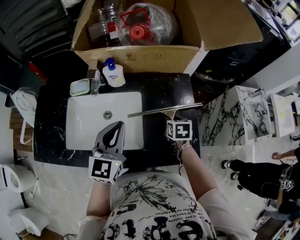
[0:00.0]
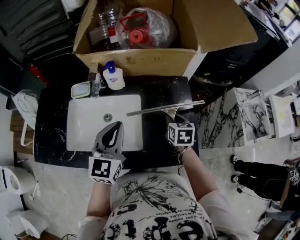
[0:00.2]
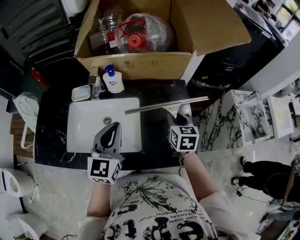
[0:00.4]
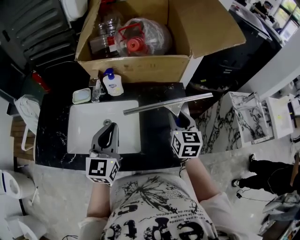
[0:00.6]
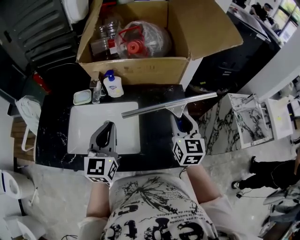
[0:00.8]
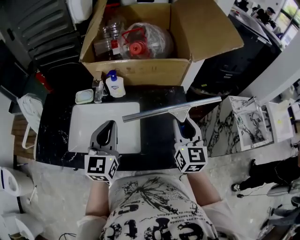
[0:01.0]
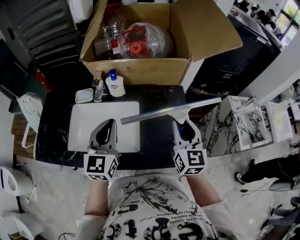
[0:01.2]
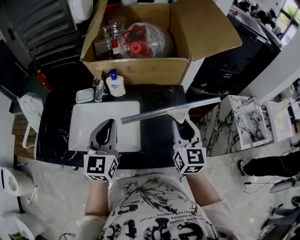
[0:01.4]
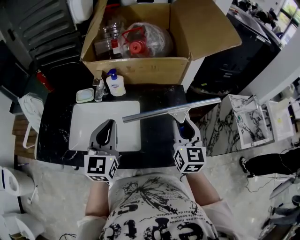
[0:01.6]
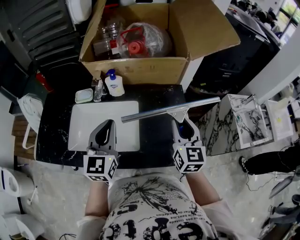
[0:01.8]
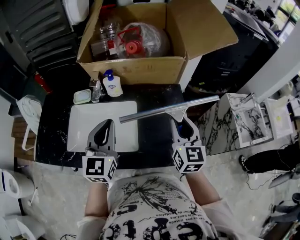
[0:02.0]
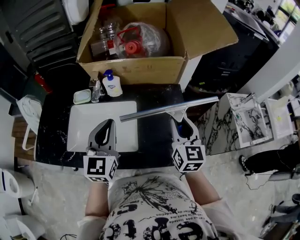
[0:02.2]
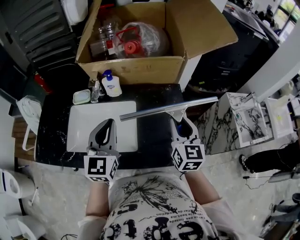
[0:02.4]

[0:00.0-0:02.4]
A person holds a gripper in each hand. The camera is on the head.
0:00.0 to 0:01.2: The left gripper changes place by approximately 5 cm; the right gripper goes about 25 cm upward, and tilts its fingers some 50 degrees upward.
0:01.2 to 0:02.4: There are only small adjustments of the grippers.

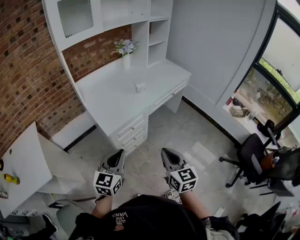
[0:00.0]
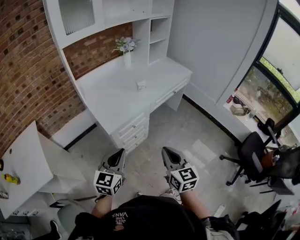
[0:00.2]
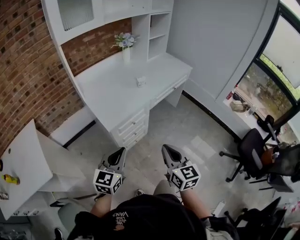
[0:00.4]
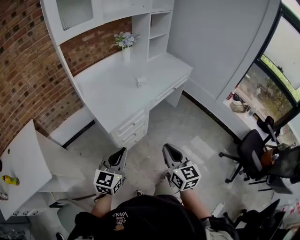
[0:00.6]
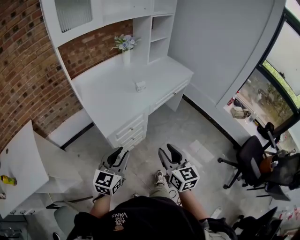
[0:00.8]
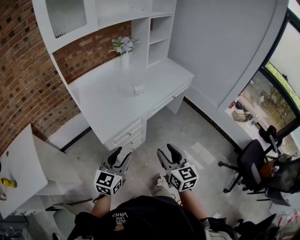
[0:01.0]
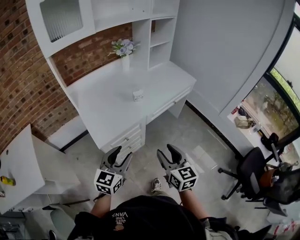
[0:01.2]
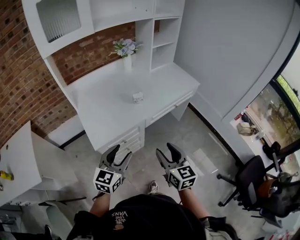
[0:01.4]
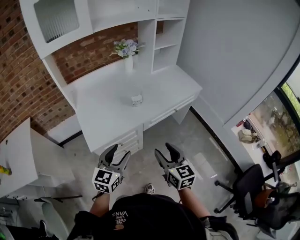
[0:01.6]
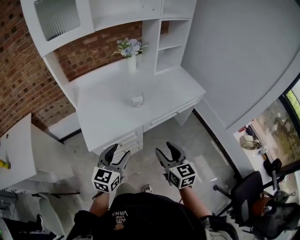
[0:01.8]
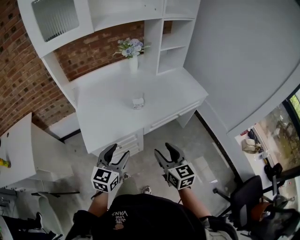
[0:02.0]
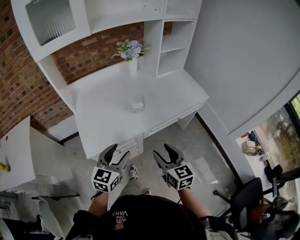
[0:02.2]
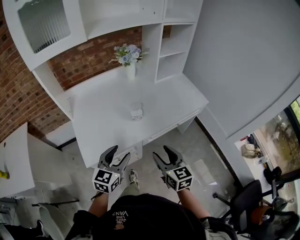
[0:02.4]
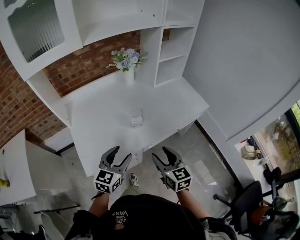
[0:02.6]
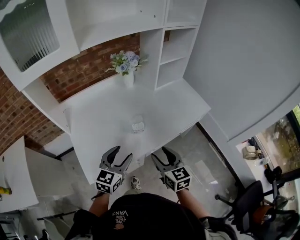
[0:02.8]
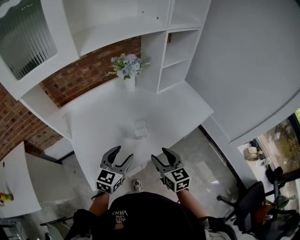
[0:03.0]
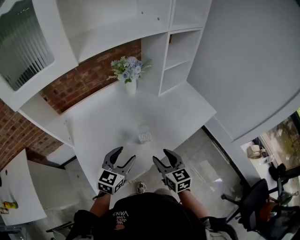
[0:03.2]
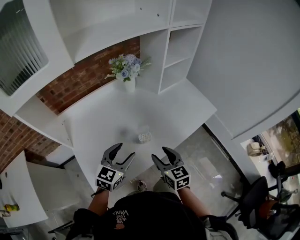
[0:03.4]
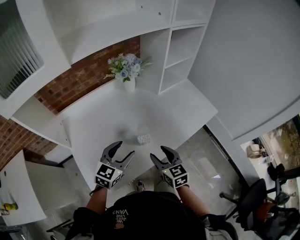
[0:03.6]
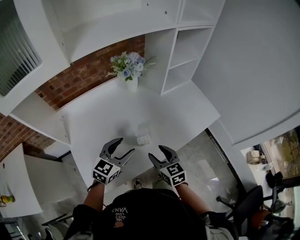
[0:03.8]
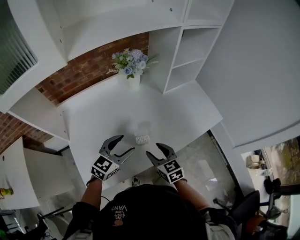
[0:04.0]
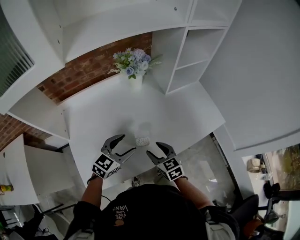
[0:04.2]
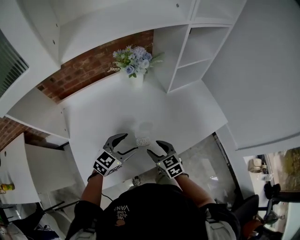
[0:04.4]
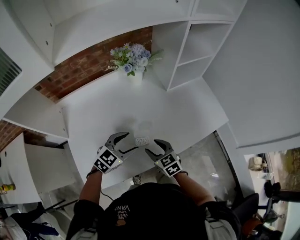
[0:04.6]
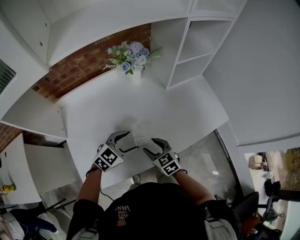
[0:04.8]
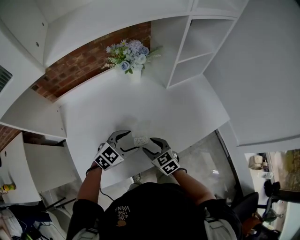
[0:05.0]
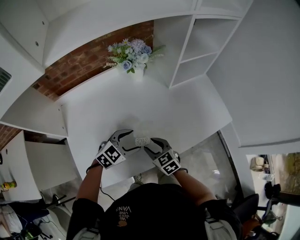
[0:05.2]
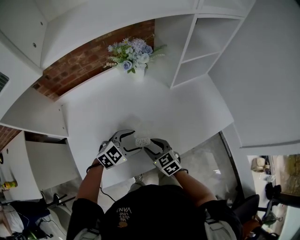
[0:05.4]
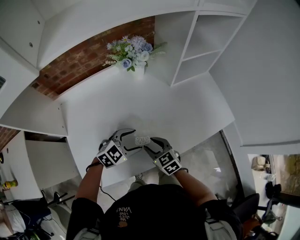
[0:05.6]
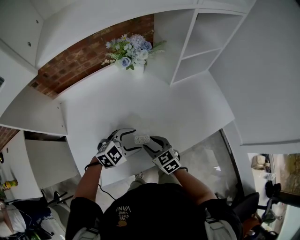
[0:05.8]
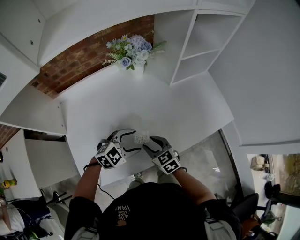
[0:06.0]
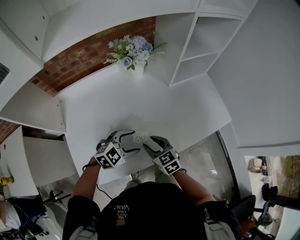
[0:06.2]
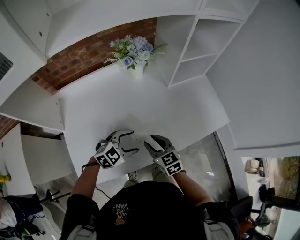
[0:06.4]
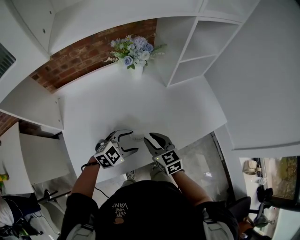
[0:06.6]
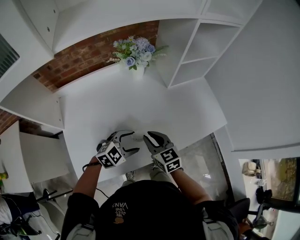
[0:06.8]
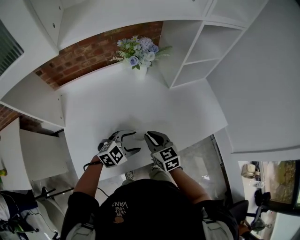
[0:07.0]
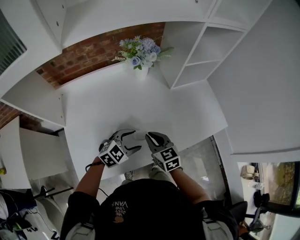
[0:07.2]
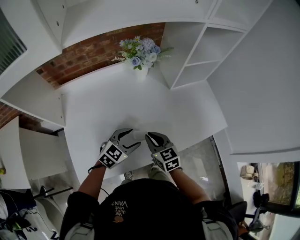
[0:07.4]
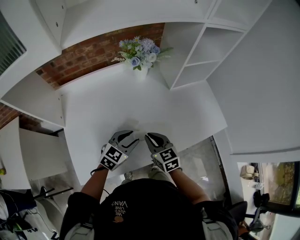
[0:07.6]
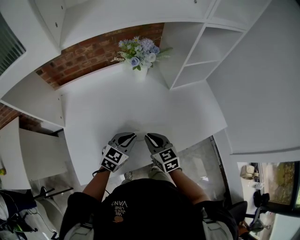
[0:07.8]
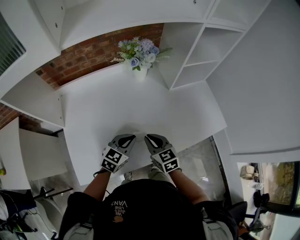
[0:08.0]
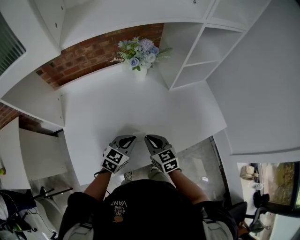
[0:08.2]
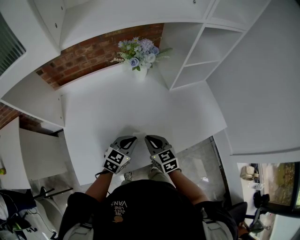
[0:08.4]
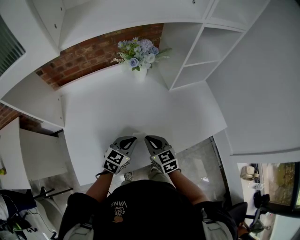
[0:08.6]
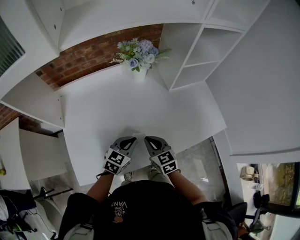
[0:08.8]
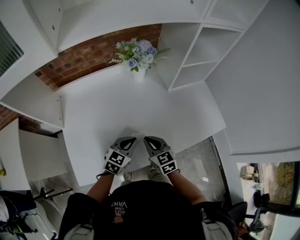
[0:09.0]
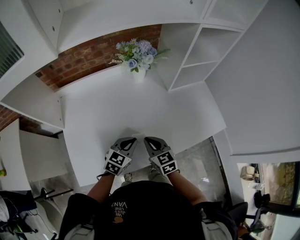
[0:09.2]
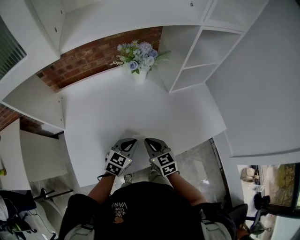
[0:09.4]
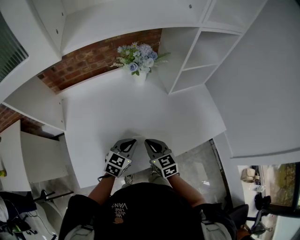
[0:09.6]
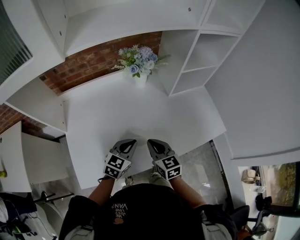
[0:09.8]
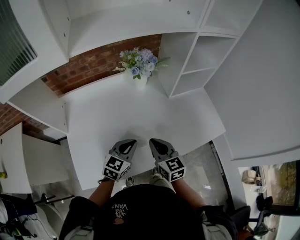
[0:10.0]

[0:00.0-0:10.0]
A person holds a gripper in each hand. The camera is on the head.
0:00.0 to 0:01.4: The left gripper is displaced forward and to the right by approximately 20 cm, and opens its fingers; the right gripper moves forward, roughly 20 cm, and opens up.
0:01.4 to 0:02.8: Both grippers move forward, roughly 25 cm.
0:02.8 to 0:04.2: The left gripper shifts about 15 cm forward, while the right gripper heads forward and downward, covering approximately 20 cm, and changes its angle by approximately 20 degrees.
0:04.2 to 0:05.8: The grippers both shift downward by roughly 5 cm. The left gripper swivels about 30 degrees.
0:05.8 to 0:07.2: The right gripper goes about 5 cm upward, and closes its fingers.
0:07.2 to 0:08.6: The left gripper rotates roughly 30 degrees, and closes.
0:08.6 to 0:10.0: Both grippers travel together upward, approximately 5 cm.

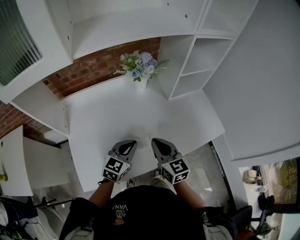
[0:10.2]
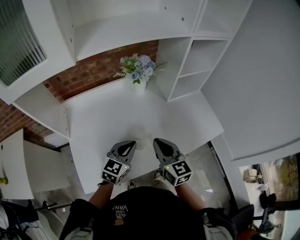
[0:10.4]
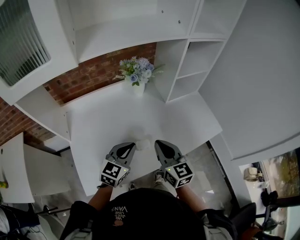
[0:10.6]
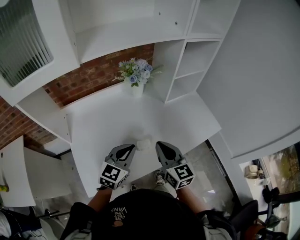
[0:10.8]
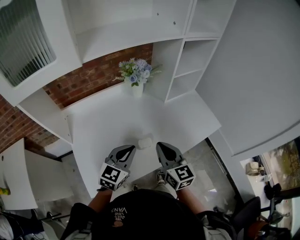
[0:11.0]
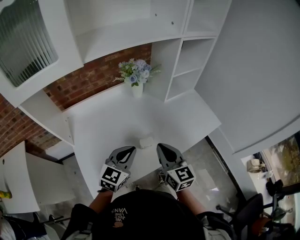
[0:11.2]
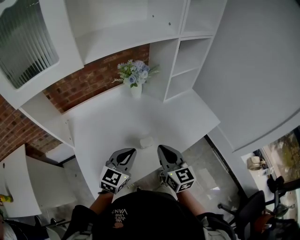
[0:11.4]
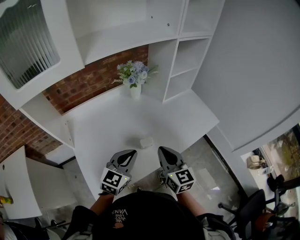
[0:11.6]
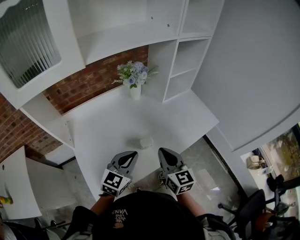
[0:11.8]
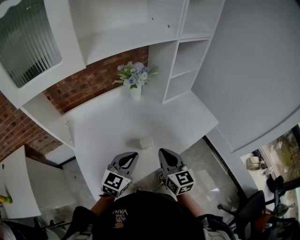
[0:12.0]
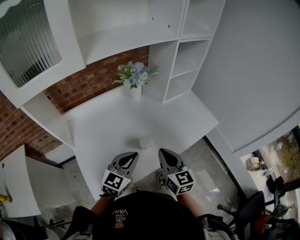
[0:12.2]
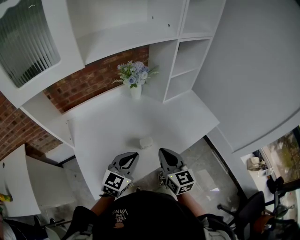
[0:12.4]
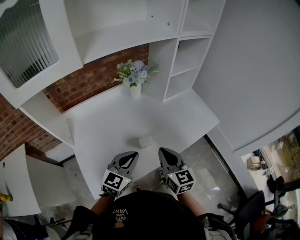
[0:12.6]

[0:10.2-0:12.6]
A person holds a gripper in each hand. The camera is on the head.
0:10.2 to 0:11.4: The right gripper moves backward, some 10 cm. Meanwhile the left gripper travels backward and upward by approximately 10 cm.
0:11.4 to 0:12.6: The grippers stay close to where they were, moving slightly.

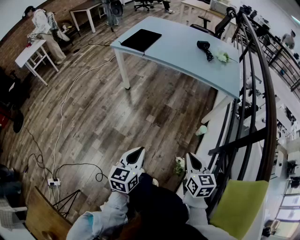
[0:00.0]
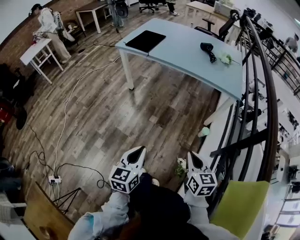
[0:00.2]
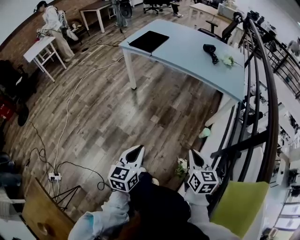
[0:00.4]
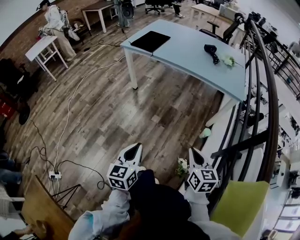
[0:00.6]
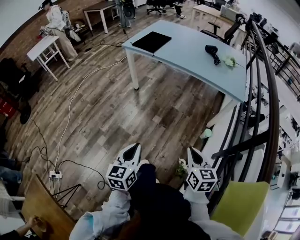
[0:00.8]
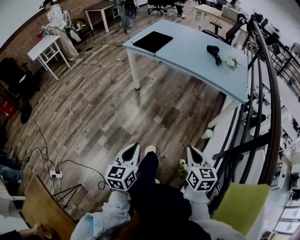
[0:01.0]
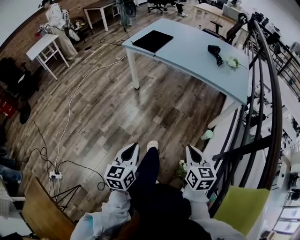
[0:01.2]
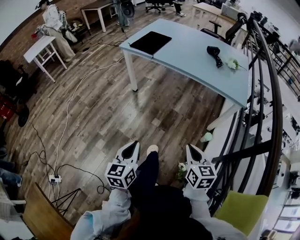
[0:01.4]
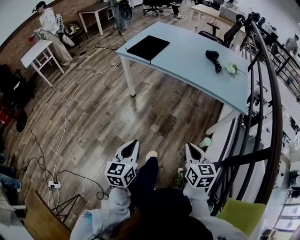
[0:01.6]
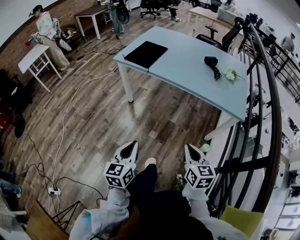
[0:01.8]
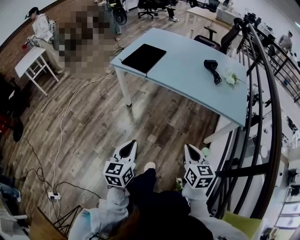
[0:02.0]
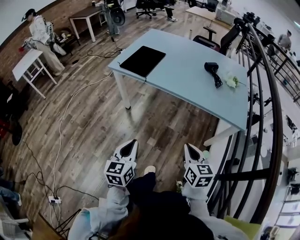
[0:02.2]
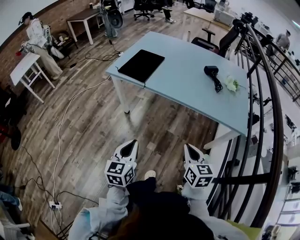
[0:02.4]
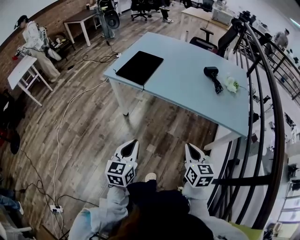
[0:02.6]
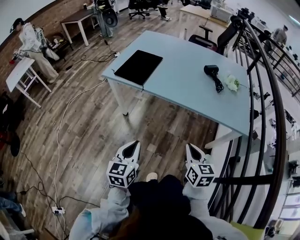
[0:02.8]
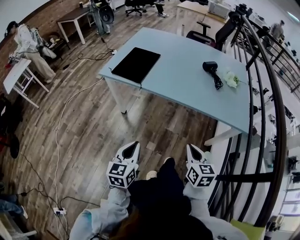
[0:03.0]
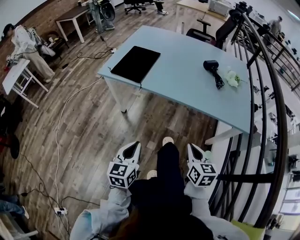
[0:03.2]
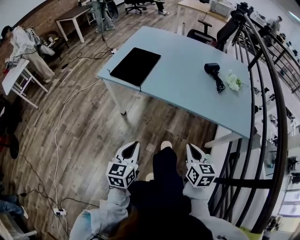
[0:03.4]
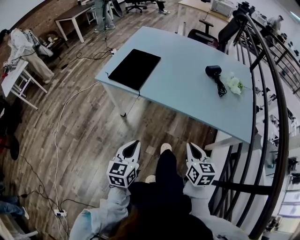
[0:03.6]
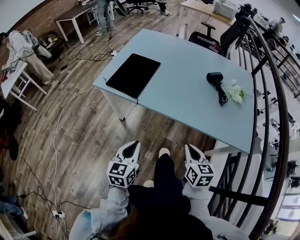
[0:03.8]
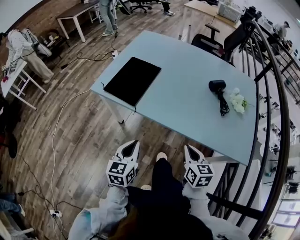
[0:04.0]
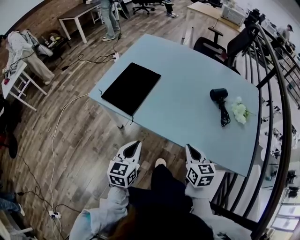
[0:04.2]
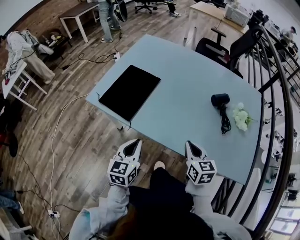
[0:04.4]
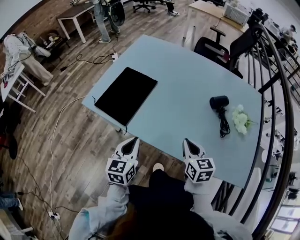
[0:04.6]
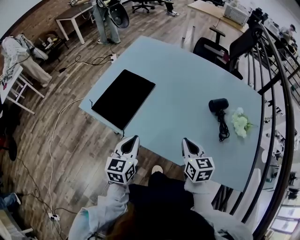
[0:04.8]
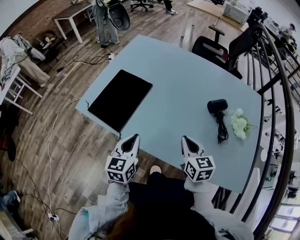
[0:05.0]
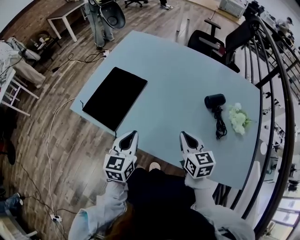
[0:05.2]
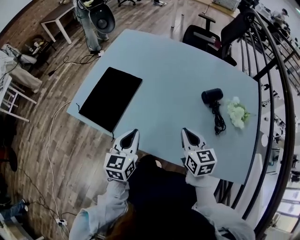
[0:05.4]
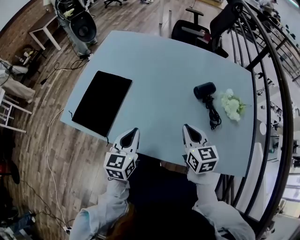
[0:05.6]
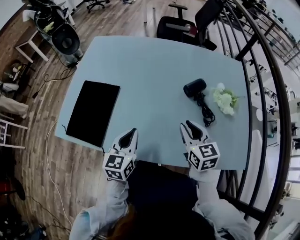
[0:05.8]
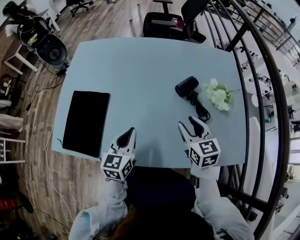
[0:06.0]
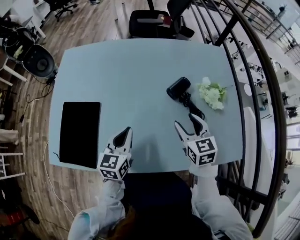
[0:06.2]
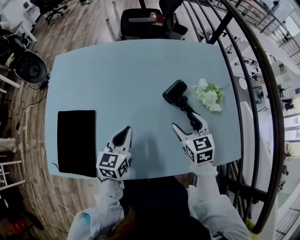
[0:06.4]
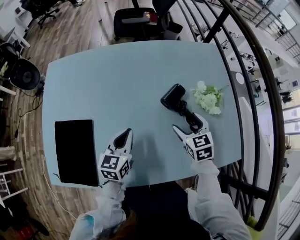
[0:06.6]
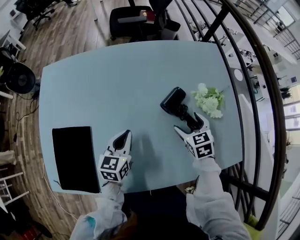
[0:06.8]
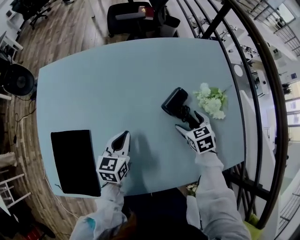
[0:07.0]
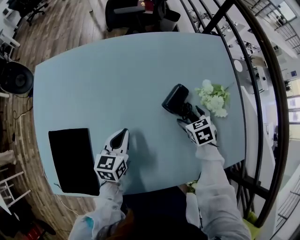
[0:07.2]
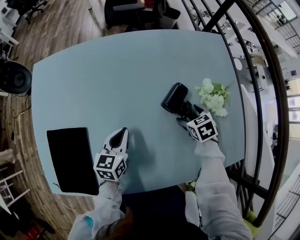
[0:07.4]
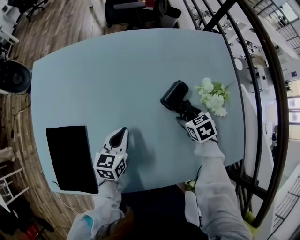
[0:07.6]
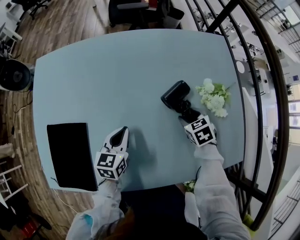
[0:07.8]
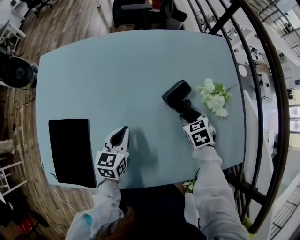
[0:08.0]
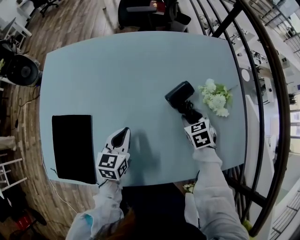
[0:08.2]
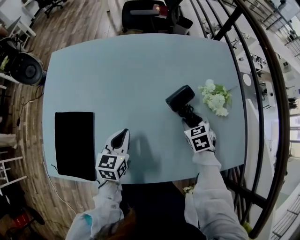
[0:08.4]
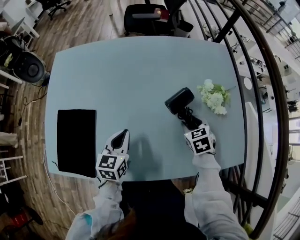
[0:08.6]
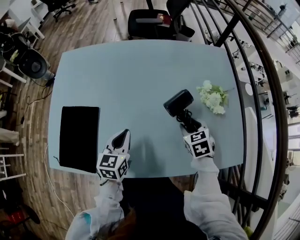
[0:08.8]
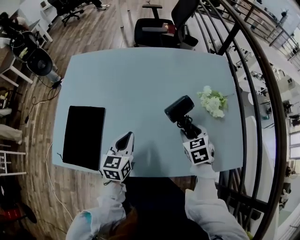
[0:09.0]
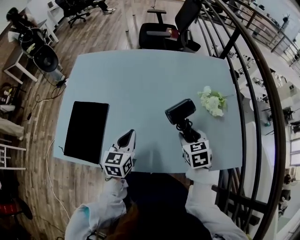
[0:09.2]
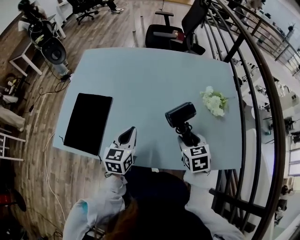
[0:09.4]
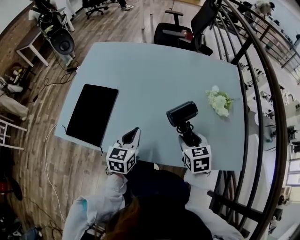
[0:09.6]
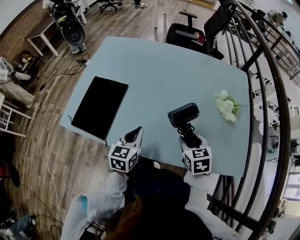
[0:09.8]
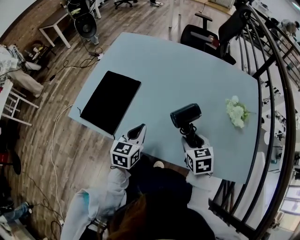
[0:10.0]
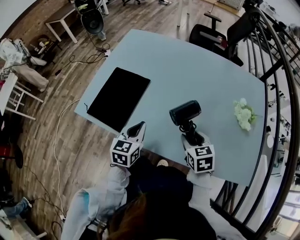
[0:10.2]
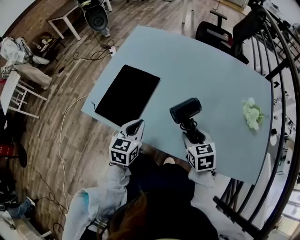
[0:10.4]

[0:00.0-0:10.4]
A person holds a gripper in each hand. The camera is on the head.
0:00.0 to 0:01.4: The right gripper moves forward, about 10 cm. The left gripper moves approximately 5 cm.
0:01.4 to 0:03.0: Both grippers travel together forward, approximately 30 cm.
0:03.0 to 0:04.4: Both grippers travel together forward, roughly 30 cm.
0:04.4 to 0:06.0: Both grippers move forward and to the right, roughly 20 cm. The right gripper opens up. Meanwhile the left gripper turns by about 20 degrees.
0:06.0 to 0:07.4: The left gripper heads forward and downward, covering about 20 cm. The right gripper travels downward, forward and to the right by about 20 cm, points its fingers roughly 40 degrees further downward, and opens up.
0:07.4 to 0:09.0: The two grippers go roughly 15 cm backward and upward. The right gripper closes up.
0:09.0 to 0:10.4: The two grippers go about 20 cm to the left and backward. The right gripper changes its angle by approximately 20 degrees.
